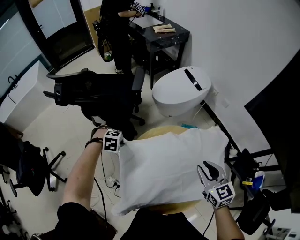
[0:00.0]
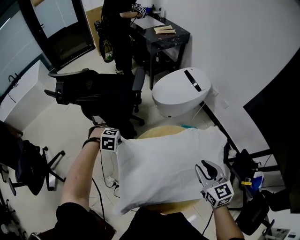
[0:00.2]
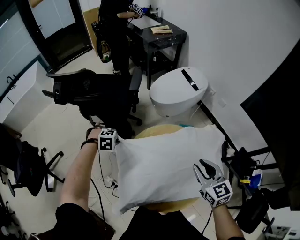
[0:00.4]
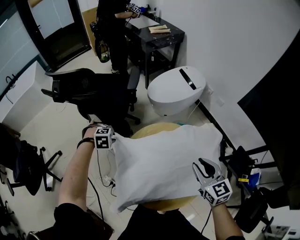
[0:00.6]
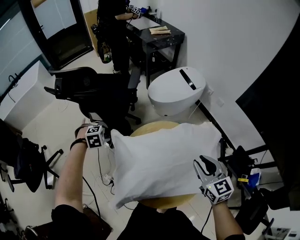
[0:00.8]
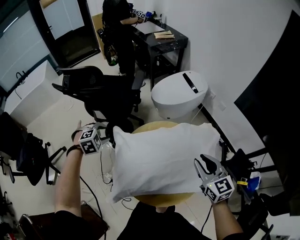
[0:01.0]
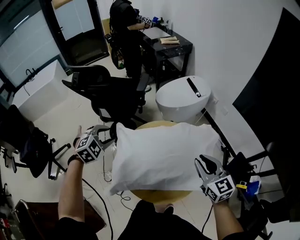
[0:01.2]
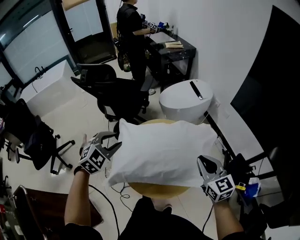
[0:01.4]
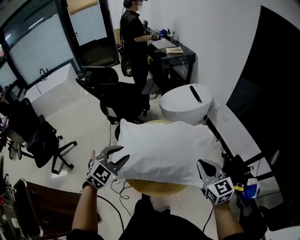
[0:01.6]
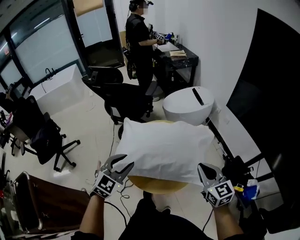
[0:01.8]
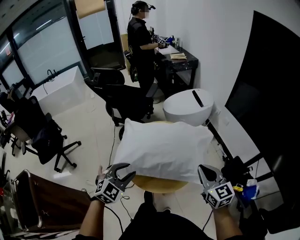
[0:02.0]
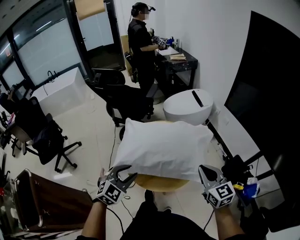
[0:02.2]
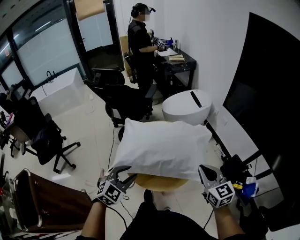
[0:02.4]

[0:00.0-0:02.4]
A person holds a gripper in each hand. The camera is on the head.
0:00.0 to 0:01.2: The left gripper moves upward, roughly 20 cm, angles its fingers upward, by some 30 degrees, and opens, while the right gripper shifts by roughly 10 cm.
0:01.2 to 0:02.4: The left gripper travels backward and to the right by approximately 35 cm, and swivels about 20 degrees. Meanwhile the right gripper shifts about 15 cm backward, and closes its fingers.

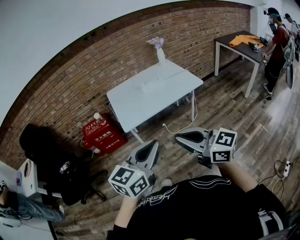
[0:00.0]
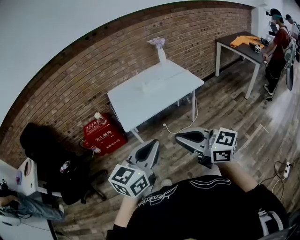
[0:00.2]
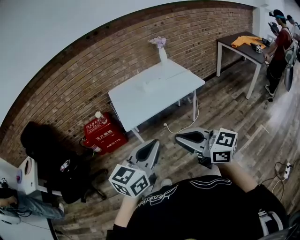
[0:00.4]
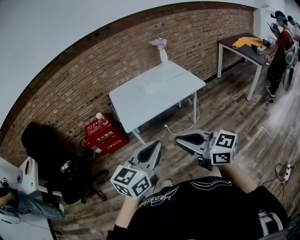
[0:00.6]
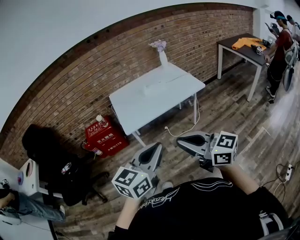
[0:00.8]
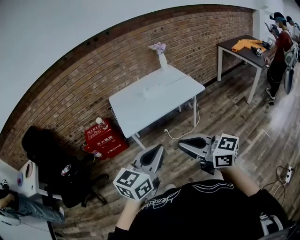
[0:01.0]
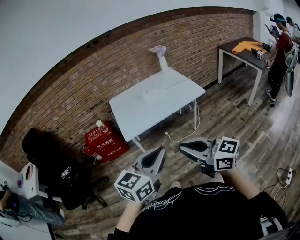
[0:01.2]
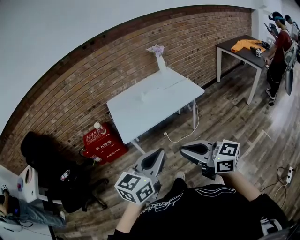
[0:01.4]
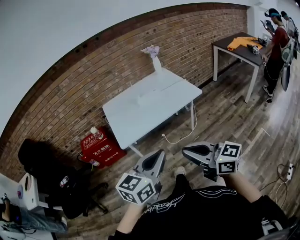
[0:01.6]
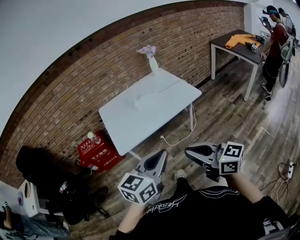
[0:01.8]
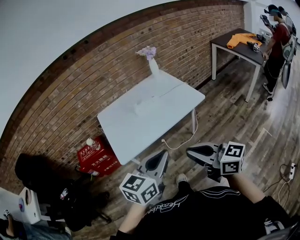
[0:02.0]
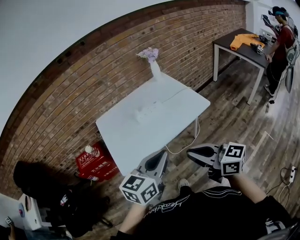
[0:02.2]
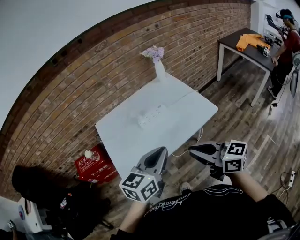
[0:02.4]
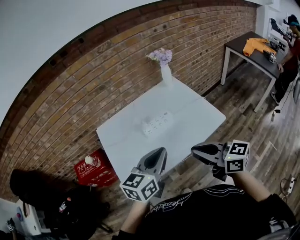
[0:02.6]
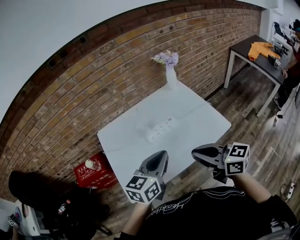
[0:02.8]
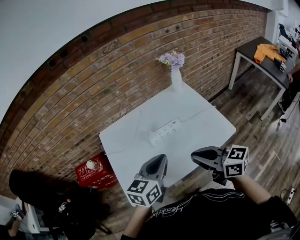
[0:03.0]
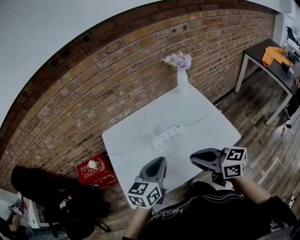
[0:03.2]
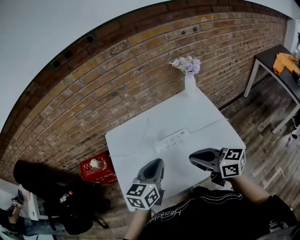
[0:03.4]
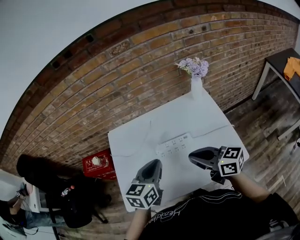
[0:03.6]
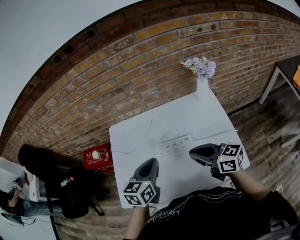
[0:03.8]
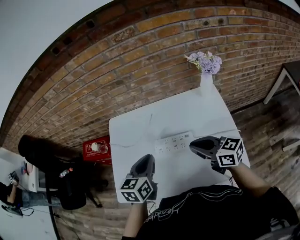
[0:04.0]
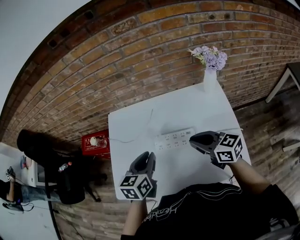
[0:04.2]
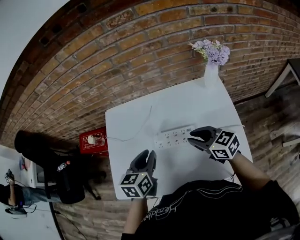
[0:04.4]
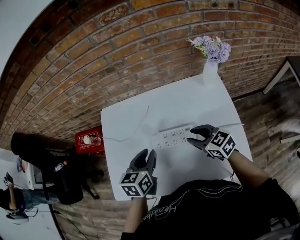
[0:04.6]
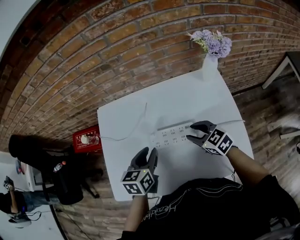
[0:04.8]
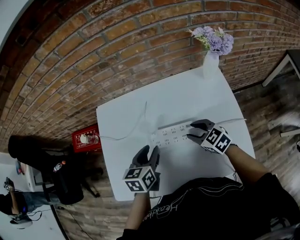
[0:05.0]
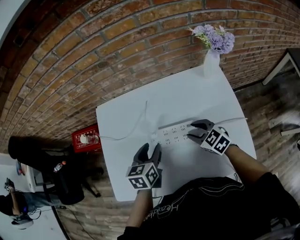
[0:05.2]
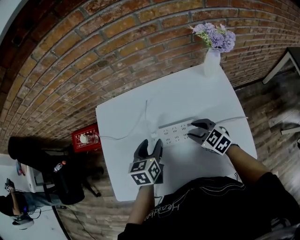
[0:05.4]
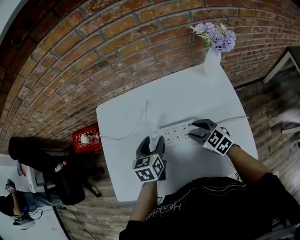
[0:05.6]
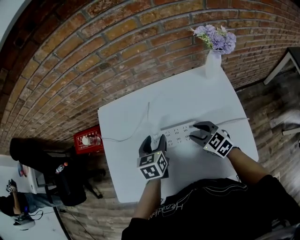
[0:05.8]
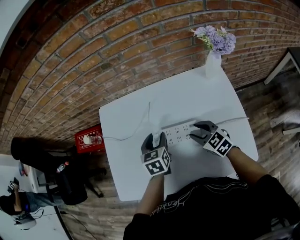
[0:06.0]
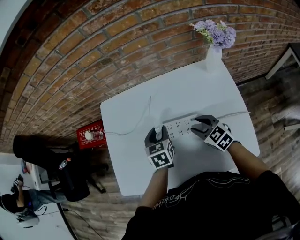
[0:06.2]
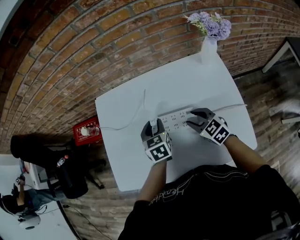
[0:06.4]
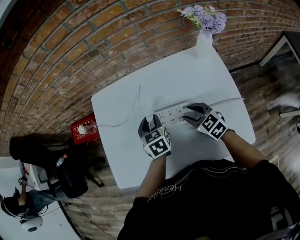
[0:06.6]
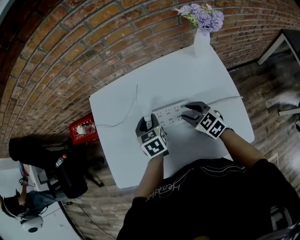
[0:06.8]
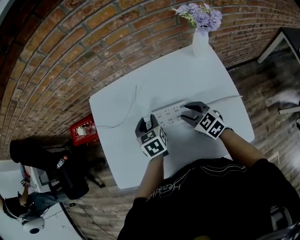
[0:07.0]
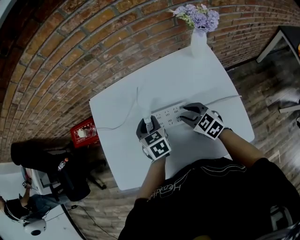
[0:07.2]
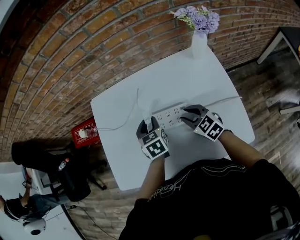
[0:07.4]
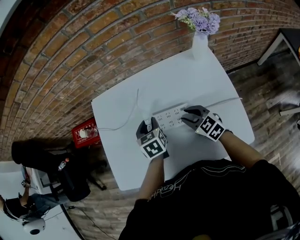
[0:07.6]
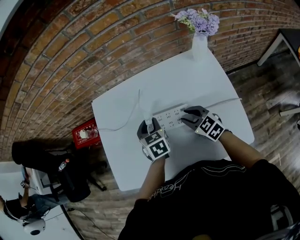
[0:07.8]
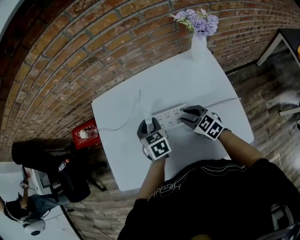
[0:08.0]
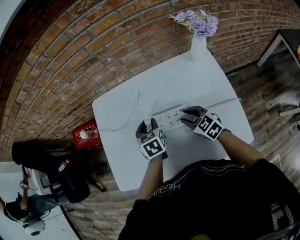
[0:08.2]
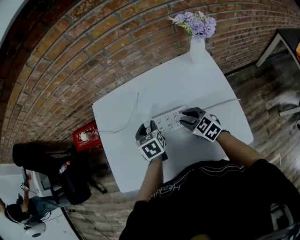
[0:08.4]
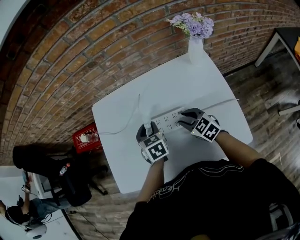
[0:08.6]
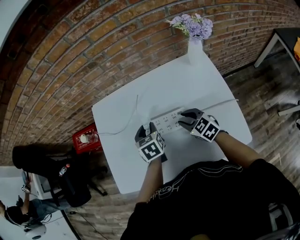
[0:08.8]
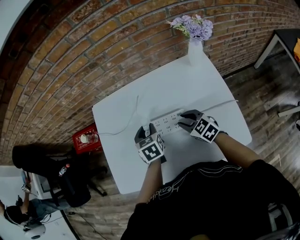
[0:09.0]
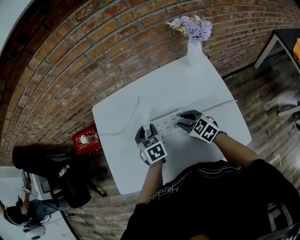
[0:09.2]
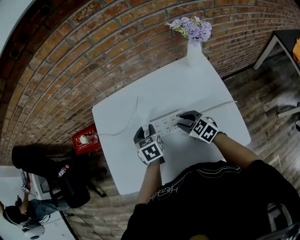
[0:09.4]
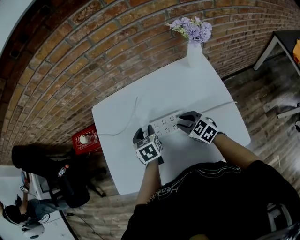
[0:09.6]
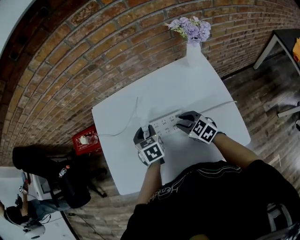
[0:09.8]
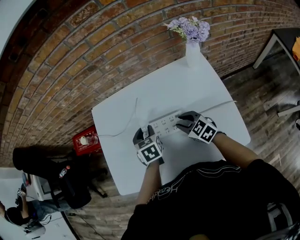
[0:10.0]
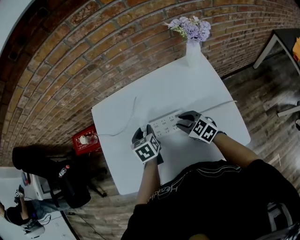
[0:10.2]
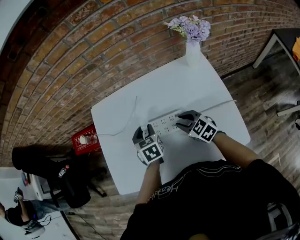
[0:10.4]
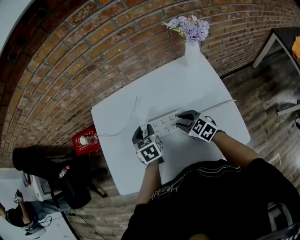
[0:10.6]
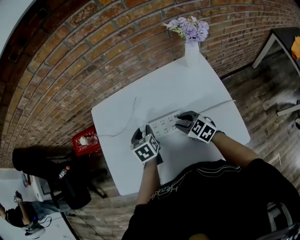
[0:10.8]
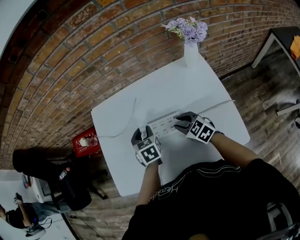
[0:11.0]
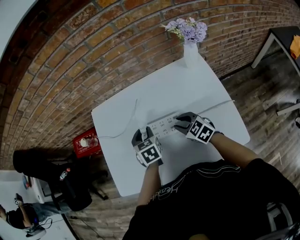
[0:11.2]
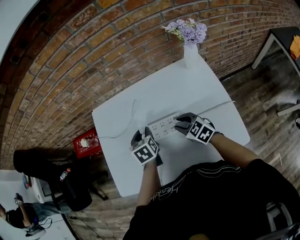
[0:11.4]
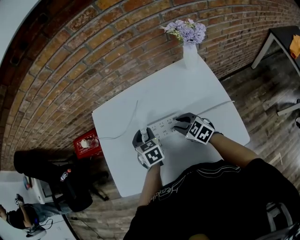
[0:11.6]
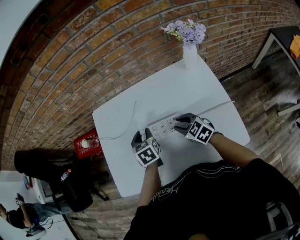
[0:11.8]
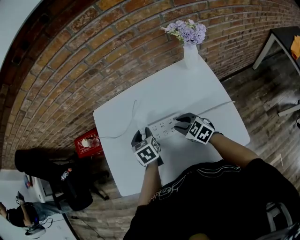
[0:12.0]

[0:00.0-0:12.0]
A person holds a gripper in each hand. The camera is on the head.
0:00.0 to 0:01.6: Both grippers travel together forward and to the right, roughly 10 cm.
0:01.6 to 0:03.0: Both grippers are carried forward, approximately 50 cm.
0:03.0 to 0:04.4: The right gripper changes place by approximately 25 cm, and changes its angle by some 30 degrees, while the left gripper moves some 20 cm, and turns by about 40 degrees.
0:04.4 to 0:06.0: The left gripper travels downward and forward by about 15 cm, and opens its fingers. Meanwhile the right gripper is displaced downward by about 10 cm, and opens.
0:06.0 to 0:12.0: There are only small adjustments of the grippers.

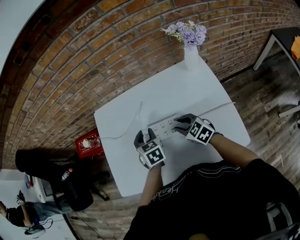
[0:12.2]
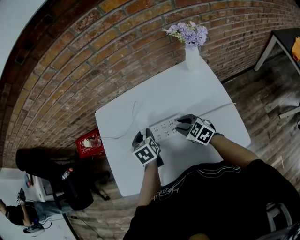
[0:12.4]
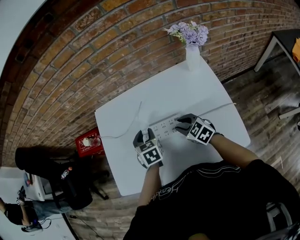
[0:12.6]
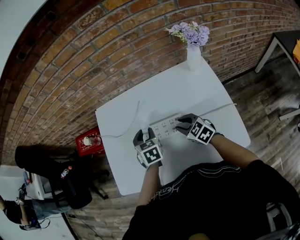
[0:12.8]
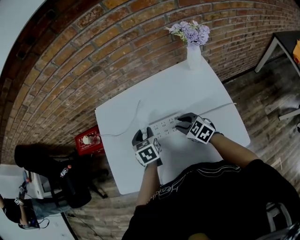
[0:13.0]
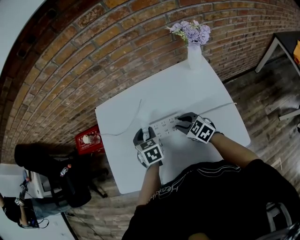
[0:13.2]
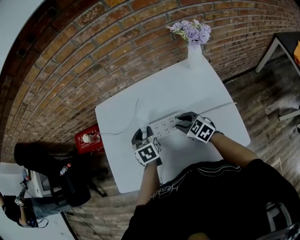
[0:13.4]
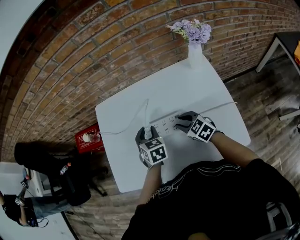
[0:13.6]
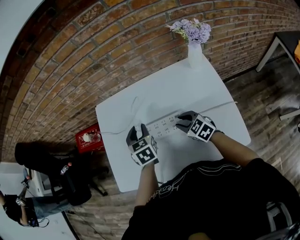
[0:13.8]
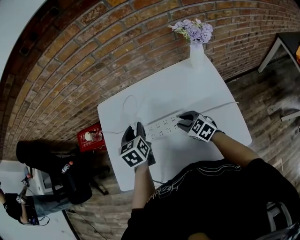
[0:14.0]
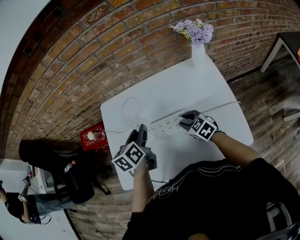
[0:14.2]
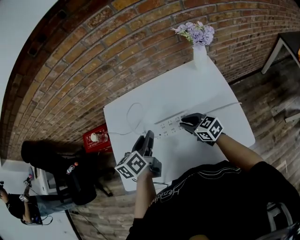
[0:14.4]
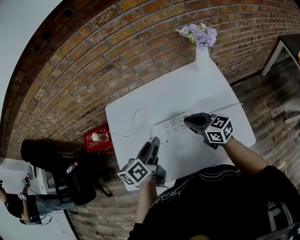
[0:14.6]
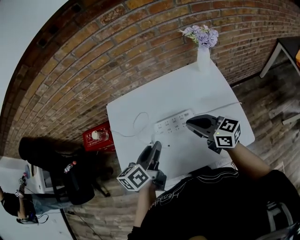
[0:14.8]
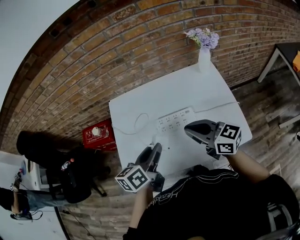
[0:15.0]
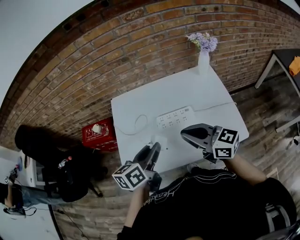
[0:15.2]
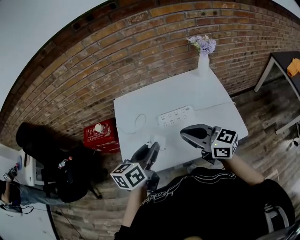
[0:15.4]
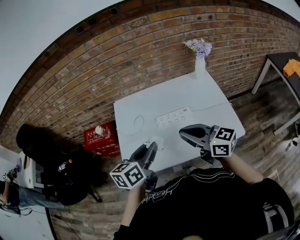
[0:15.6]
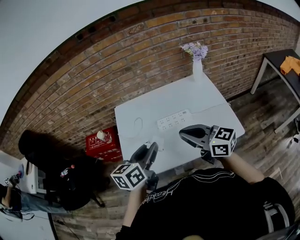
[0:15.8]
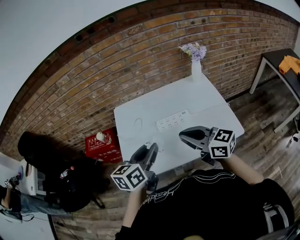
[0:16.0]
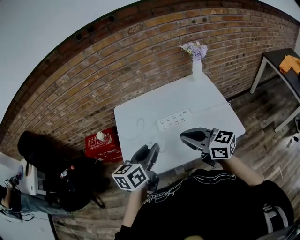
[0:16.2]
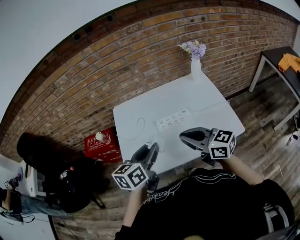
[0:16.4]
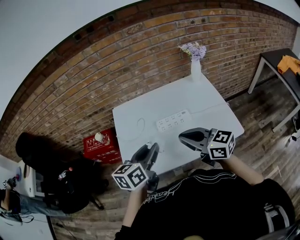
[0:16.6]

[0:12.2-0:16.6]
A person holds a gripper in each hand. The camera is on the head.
0:12.2 to 0:13.6: The grippers move only a little.
0:13.6 to 0:15.2: The two grippers go approximately 25 cm upward, backward and to the left. The left gripper rotates about 60 degrees, while the right gripper points its fingers roughly 30 degrees further upward, and closes up.
0:15.2 to 0:16.6: The left gripper moves roughly 5 cm, while the right gripper heads backward, covering approximately 5 cm.

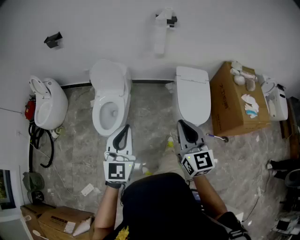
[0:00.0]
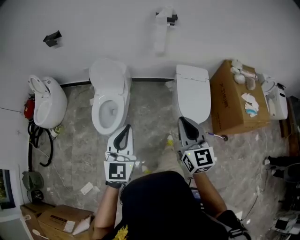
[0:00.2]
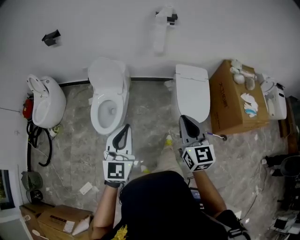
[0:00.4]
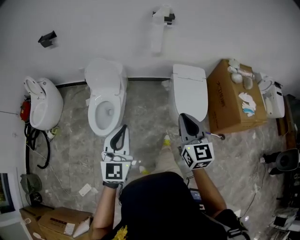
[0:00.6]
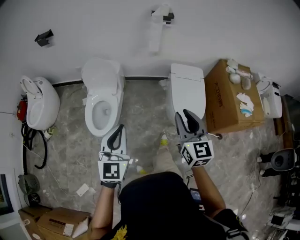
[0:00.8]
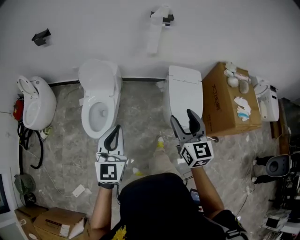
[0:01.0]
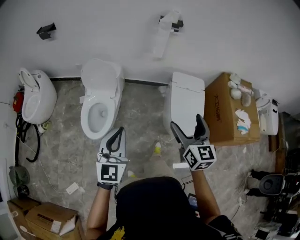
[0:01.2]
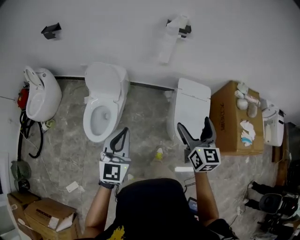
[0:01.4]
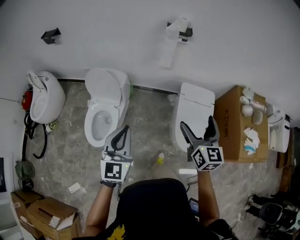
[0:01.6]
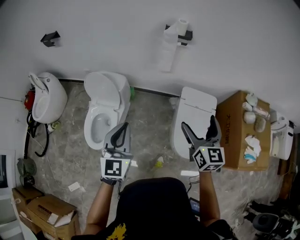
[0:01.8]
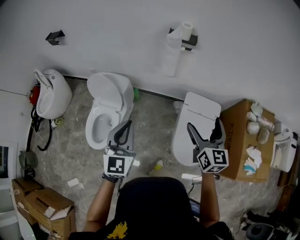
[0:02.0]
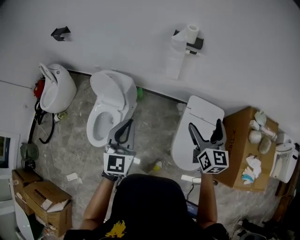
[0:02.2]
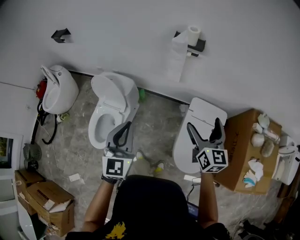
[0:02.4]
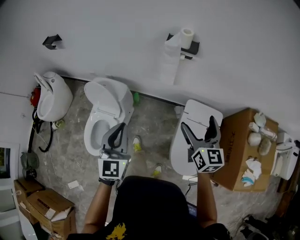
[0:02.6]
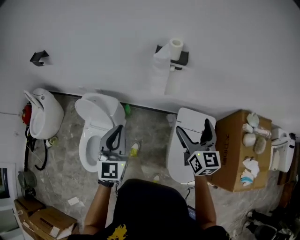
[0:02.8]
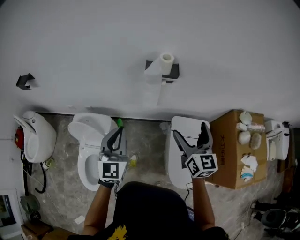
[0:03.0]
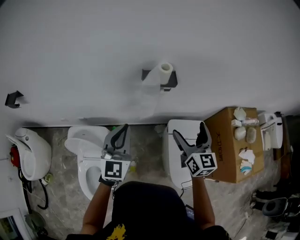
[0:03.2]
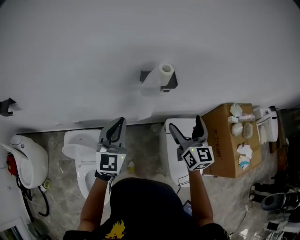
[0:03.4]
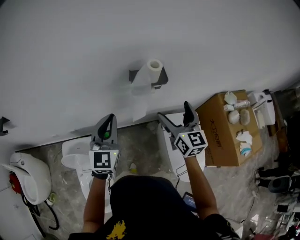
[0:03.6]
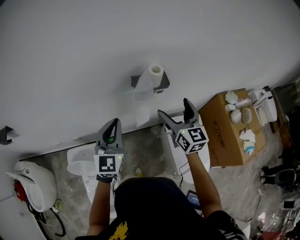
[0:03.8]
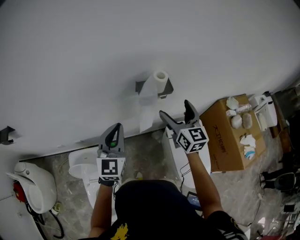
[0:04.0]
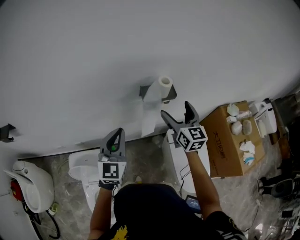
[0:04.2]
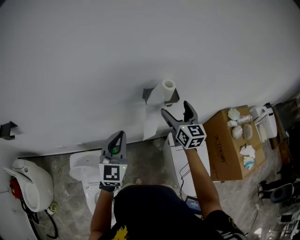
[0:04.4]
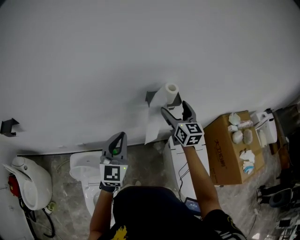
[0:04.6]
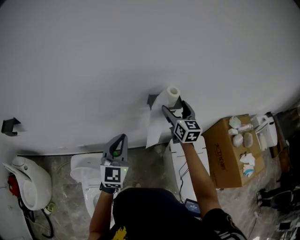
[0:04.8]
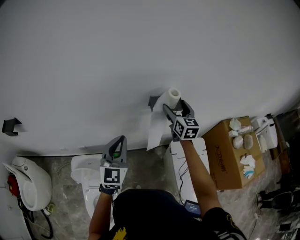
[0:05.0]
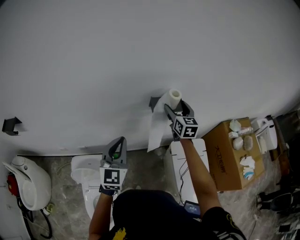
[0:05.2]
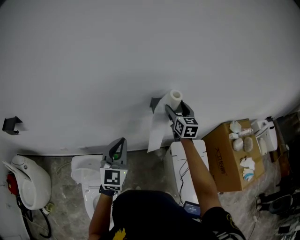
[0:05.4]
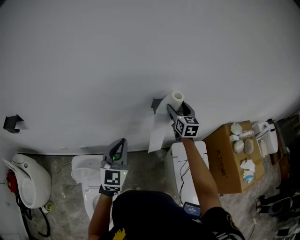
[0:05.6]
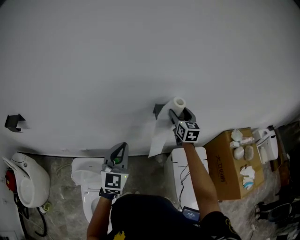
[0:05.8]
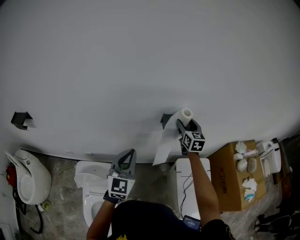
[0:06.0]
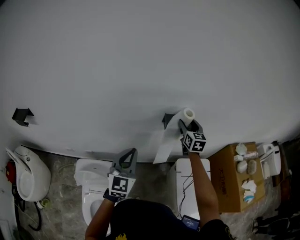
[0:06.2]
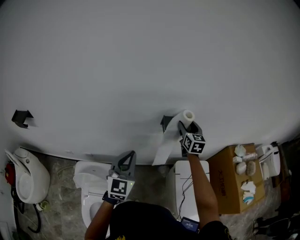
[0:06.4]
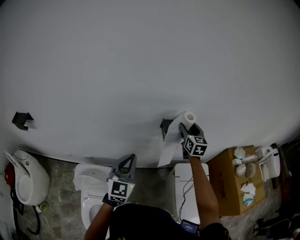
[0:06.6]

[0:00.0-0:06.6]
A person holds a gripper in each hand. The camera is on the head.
0:00.0 to 0:01.6: The left gripper travels forward by approximately 25 cm, while the right gripper moves forward and to the right, some 35 cm, and opens up.
0:01.6 to 0:03.2: The two grippers go some 40 cm forward.
0:03.2 to 0:05.0: The left gripper moves to the left and forward, about 10 cm; the right gripper heads forward and to the left, covering some 25 cm.
0:05.0 to 0:06.6: There are only small adjustments of the grippers.
